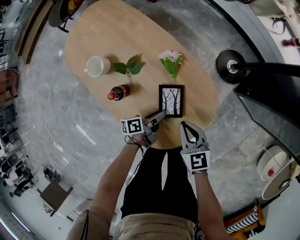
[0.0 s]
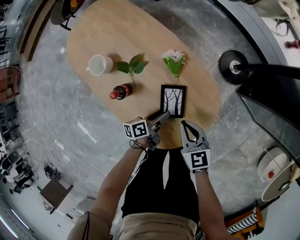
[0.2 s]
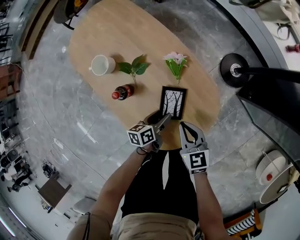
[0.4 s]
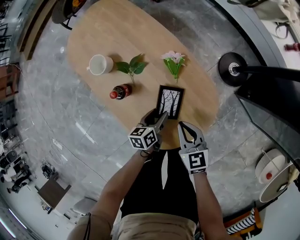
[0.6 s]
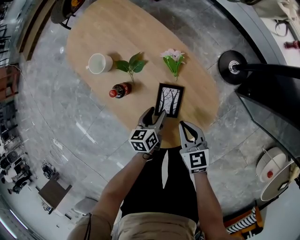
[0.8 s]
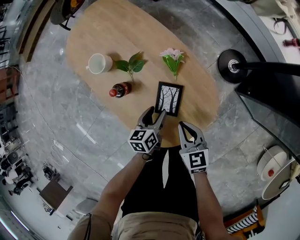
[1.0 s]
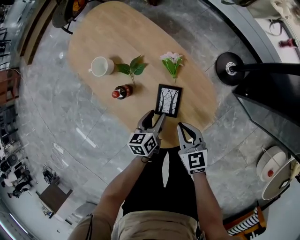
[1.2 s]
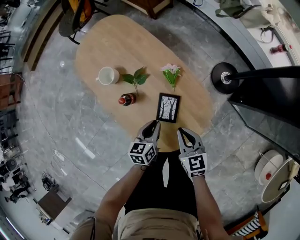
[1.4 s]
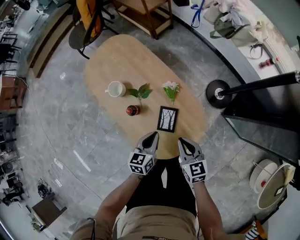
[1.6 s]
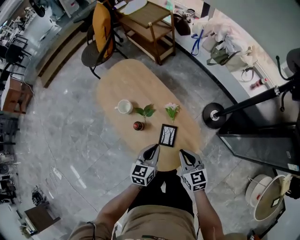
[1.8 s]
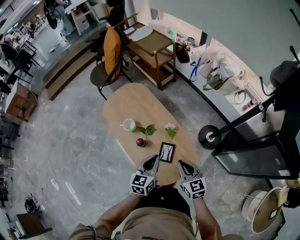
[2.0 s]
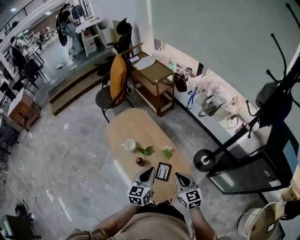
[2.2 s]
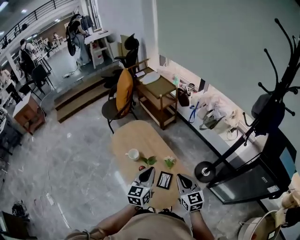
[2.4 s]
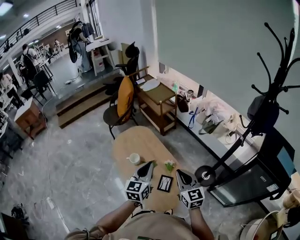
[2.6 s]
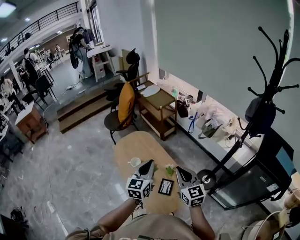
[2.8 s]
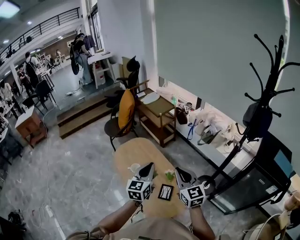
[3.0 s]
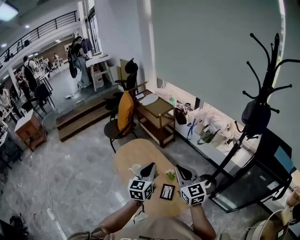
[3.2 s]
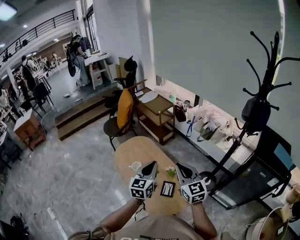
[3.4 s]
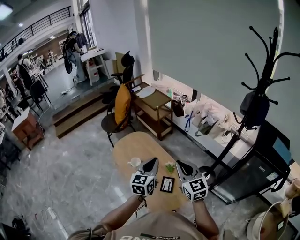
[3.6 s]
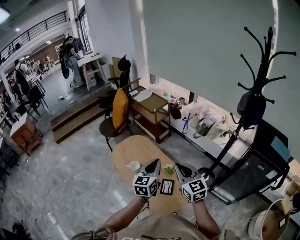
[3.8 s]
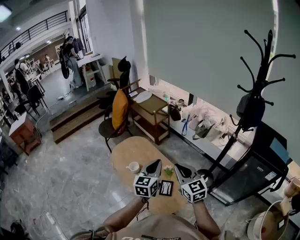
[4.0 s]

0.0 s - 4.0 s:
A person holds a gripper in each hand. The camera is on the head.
0.0 s - 1.4 s: The left gripper is displaced upward by about 10 cm, swivels about 50 degrees, and opens, then closes once more.
1.4 s - 2.6 s: Both grippers travel together upward, approximately 35 cm. The left gripper swivels approximately 40 degrees; the right gripper changes its angle by roughly 30 degrees.
2.6 s - 4.0 s: The right gripper heads upward, covering some 5 cm.

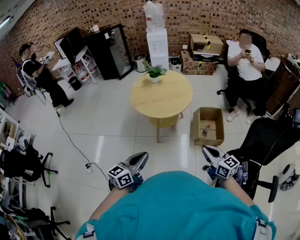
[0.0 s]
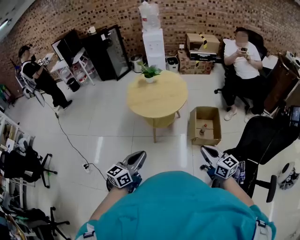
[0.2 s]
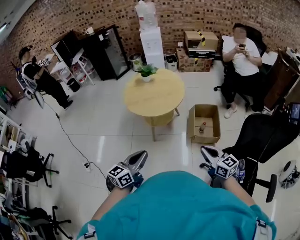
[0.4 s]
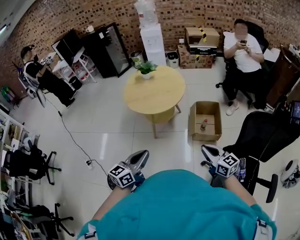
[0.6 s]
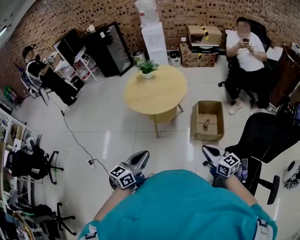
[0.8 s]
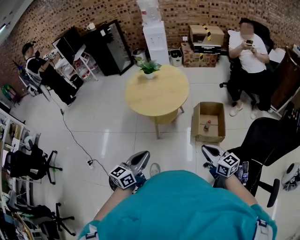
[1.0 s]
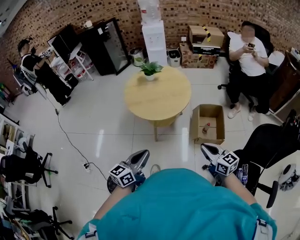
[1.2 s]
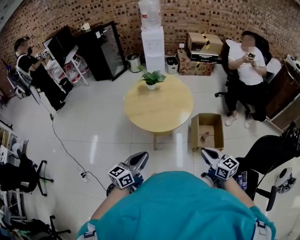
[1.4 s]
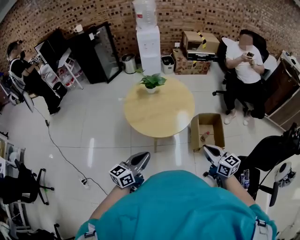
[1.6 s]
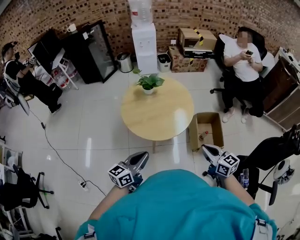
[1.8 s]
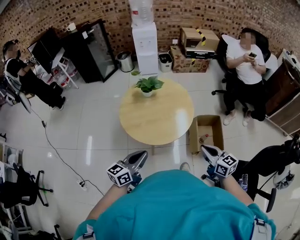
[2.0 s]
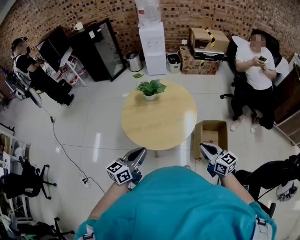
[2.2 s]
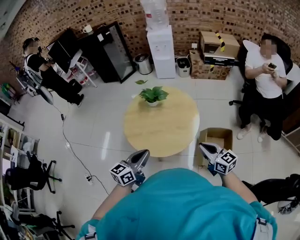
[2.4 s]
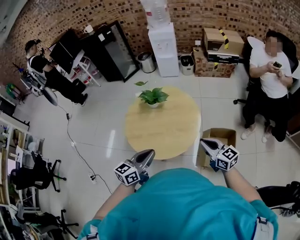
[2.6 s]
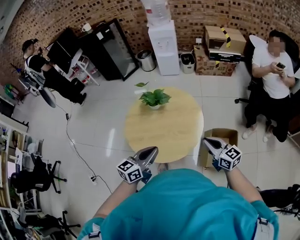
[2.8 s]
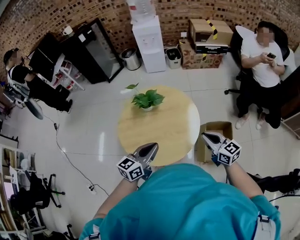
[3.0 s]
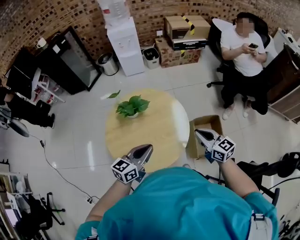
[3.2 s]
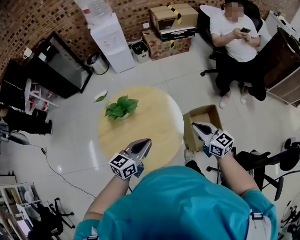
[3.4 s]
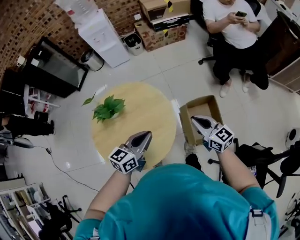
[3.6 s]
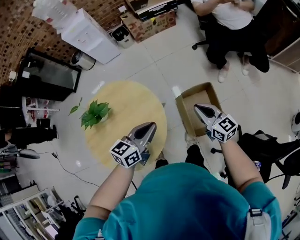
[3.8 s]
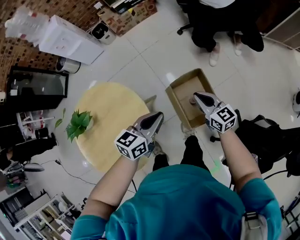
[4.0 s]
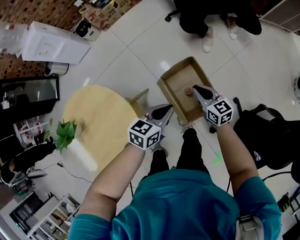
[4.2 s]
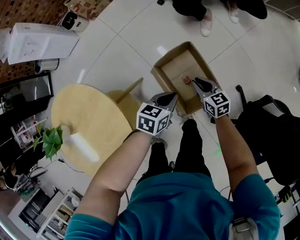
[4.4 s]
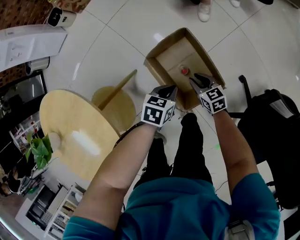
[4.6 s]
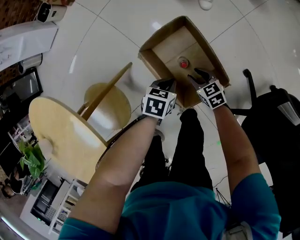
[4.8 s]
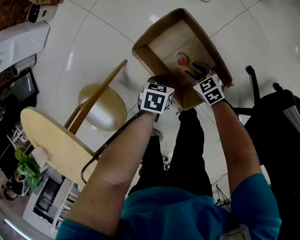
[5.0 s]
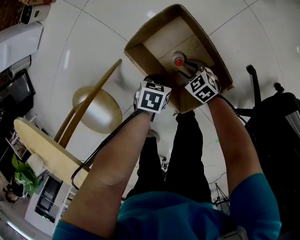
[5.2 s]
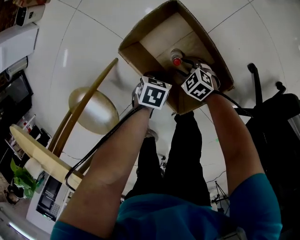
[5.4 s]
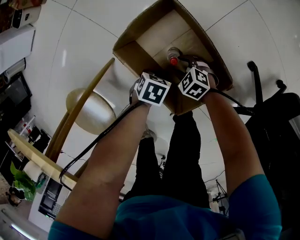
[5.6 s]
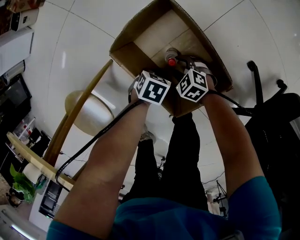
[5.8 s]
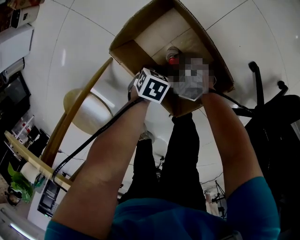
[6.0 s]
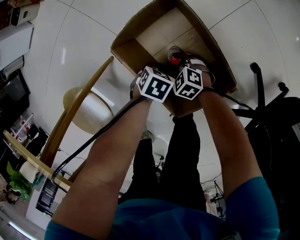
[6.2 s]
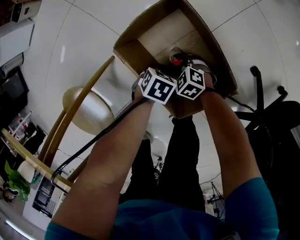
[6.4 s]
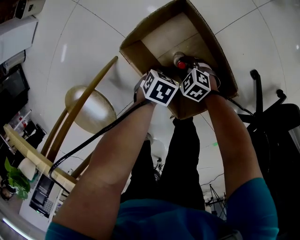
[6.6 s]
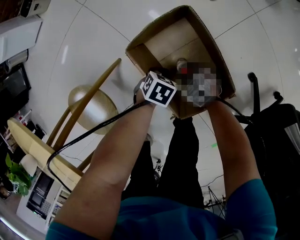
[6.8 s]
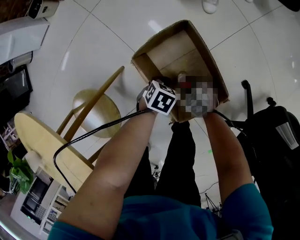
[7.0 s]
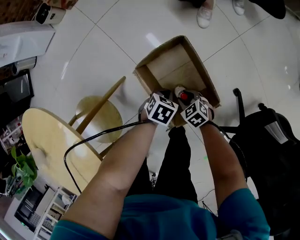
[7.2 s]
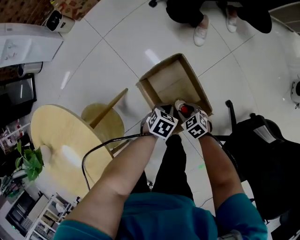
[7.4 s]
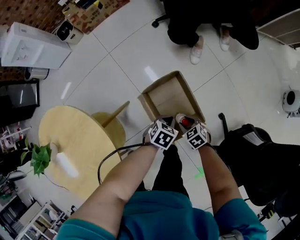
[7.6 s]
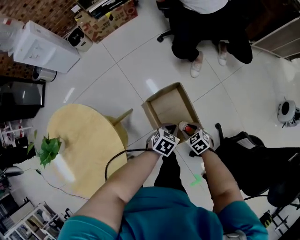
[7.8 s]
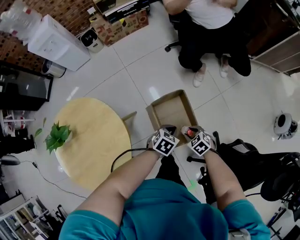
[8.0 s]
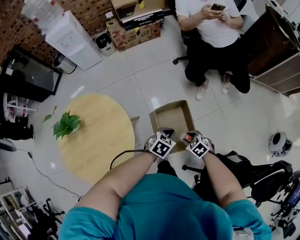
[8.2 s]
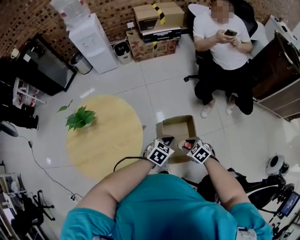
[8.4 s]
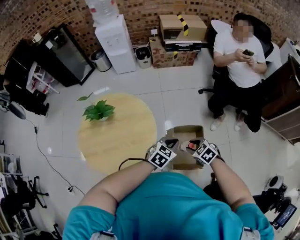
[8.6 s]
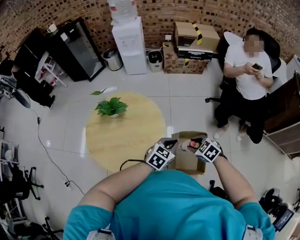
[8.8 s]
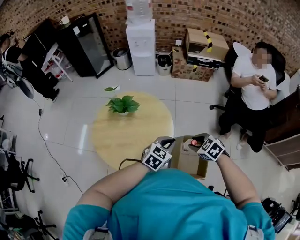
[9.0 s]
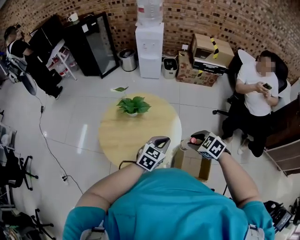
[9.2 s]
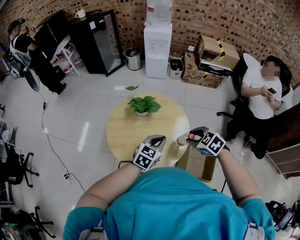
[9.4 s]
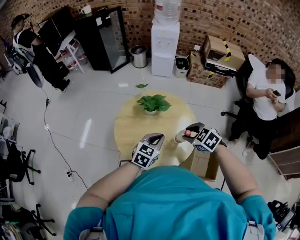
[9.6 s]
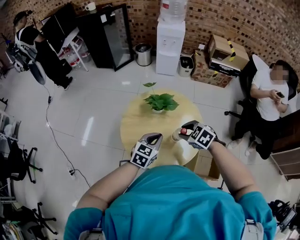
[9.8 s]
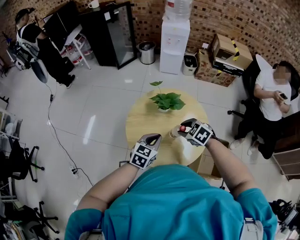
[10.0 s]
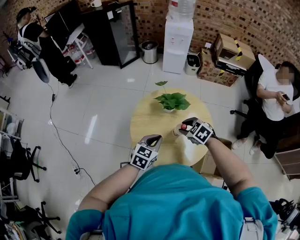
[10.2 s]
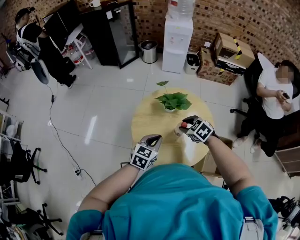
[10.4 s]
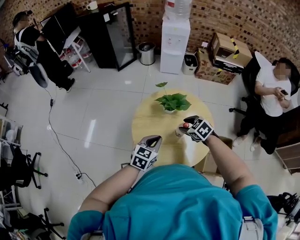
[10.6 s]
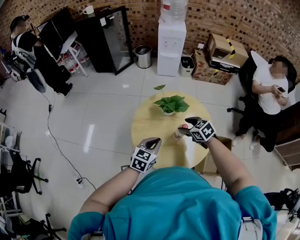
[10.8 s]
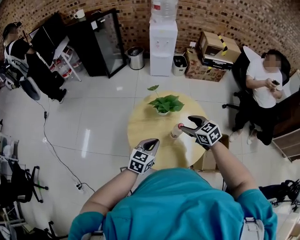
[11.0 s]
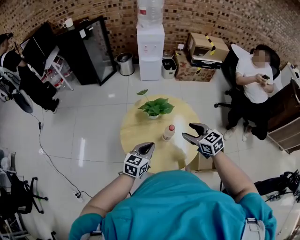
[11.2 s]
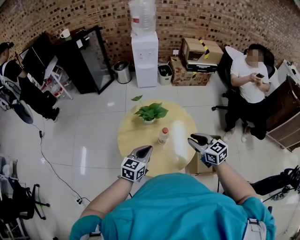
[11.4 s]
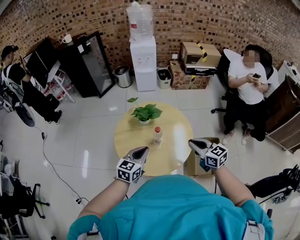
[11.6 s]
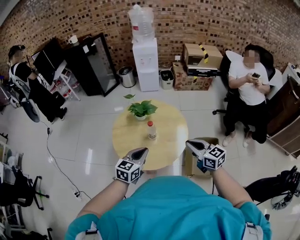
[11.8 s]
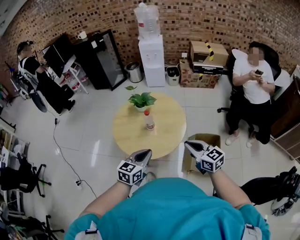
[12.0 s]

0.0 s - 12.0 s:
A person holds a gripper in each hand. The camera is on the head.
0.0 s - 1.6 s: The grippers both shift forward and to the left by about 30 cm.
1.6 s - 3.0 s: Both grippers are carried forward, approximately 40 cm.
3.0 s - 4.4 s: The two grippers go roughly 60 cm downward. The left gripper angles its fingers downward, by approximately 40 degrees. The right gripper rotates roughly 50 degrees.
4.4 s - 6.0 s: The two grippers go roughly 50 cm downward. The left gripper points its fingers about 30 degrees further downward. The right gripper turns by some 40 degrees, and opens up.
6.0 s - 7.6 s: The grippers both shift upward by about 40 cm. The left gripper rotates approximately 20 degrees.
7.6 s - 9.0 s: Both grippers travel together upward, some 70 cm. The left gripper swivels roughly 50 degrees. Meanwhile the right gripper rolls counterclockwise, seen from behind, by about 50 degrees.
9.0 s - 10.4 s: The left gripper shifts some 35 cm to the left. The right gripper goes some 40 cm to the left and forward.
10.4 s - 12.0 s: The grippers both shift backward and to the right by about 40 cm. The right gripper points its fingers about 40 degrees further upward, and closes its fingers.

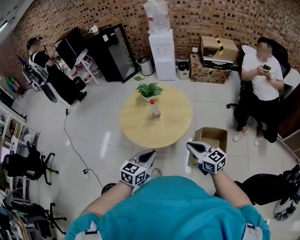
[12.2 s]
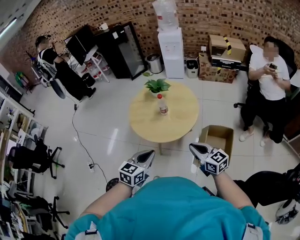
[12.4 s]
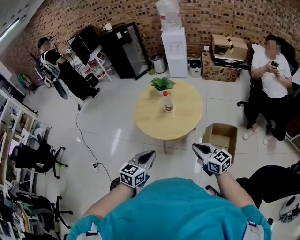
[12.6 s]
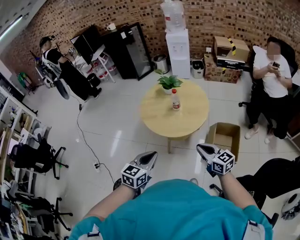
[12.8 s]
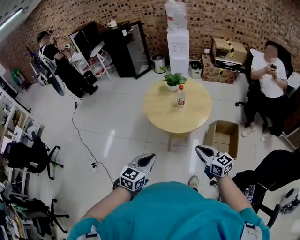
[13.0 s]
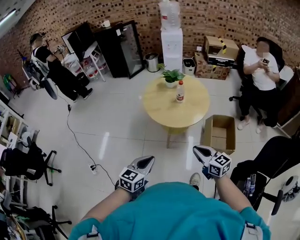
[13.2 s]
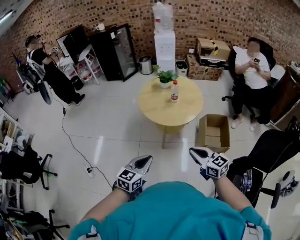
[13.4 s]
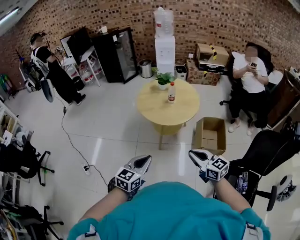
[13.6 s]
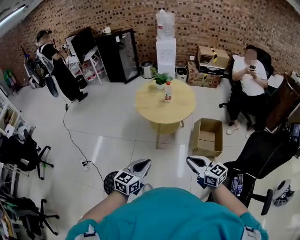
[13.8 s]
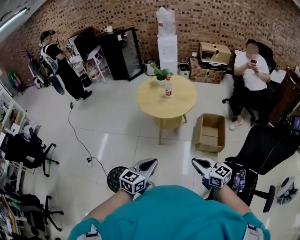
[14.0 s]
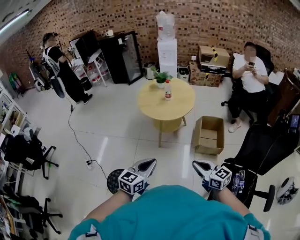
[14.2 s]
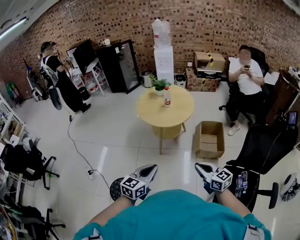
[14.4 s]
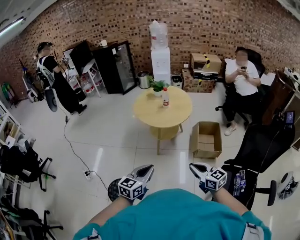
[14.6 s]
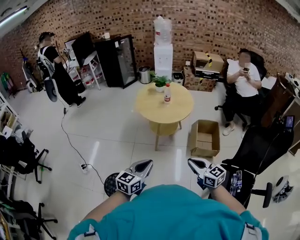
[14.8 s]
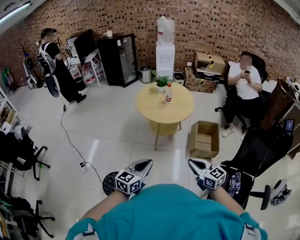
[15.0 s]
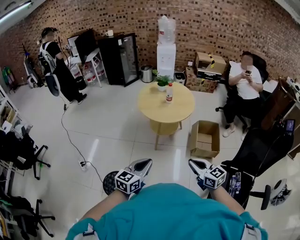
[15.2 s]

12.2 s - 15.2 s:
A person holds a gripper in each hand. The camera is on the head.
12.2 s - 13.8 s: The two grippers travel together, backward and to the left, some 50 cm.
13.8 s - 15.2 s: Both grippers move backward, some 5 cm.

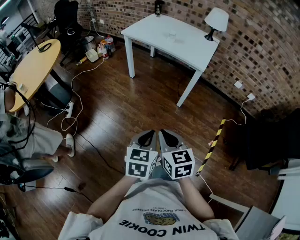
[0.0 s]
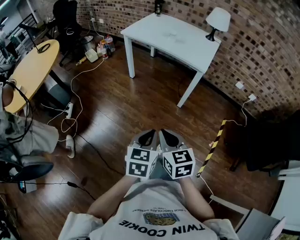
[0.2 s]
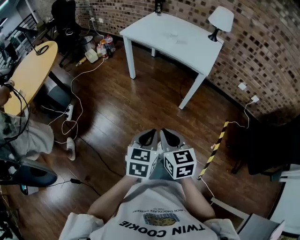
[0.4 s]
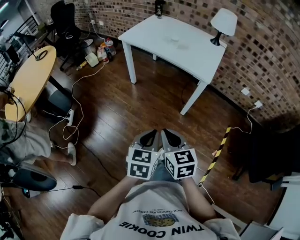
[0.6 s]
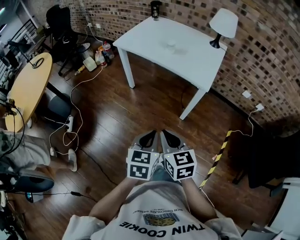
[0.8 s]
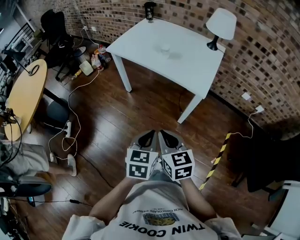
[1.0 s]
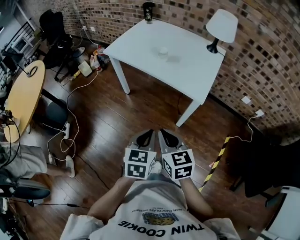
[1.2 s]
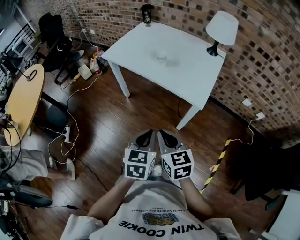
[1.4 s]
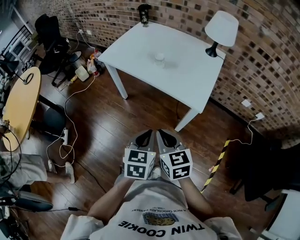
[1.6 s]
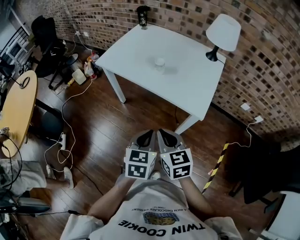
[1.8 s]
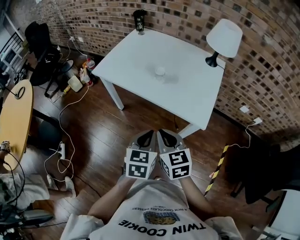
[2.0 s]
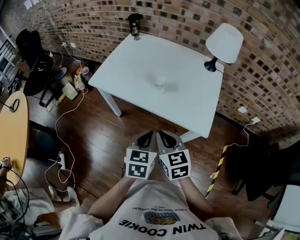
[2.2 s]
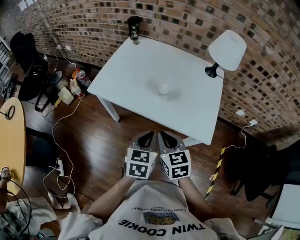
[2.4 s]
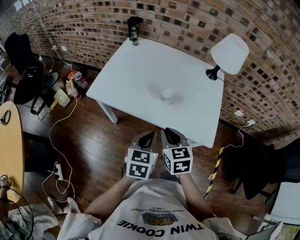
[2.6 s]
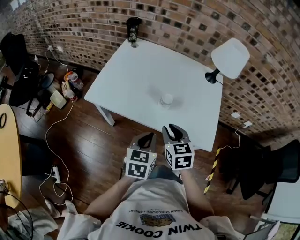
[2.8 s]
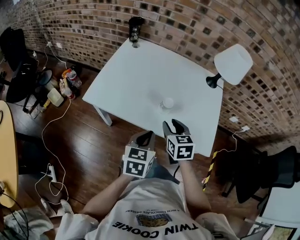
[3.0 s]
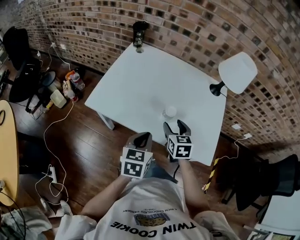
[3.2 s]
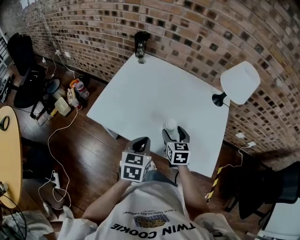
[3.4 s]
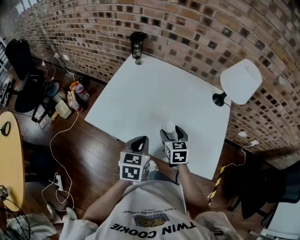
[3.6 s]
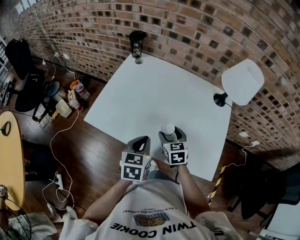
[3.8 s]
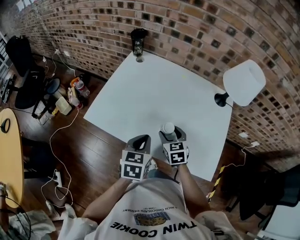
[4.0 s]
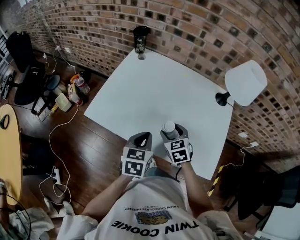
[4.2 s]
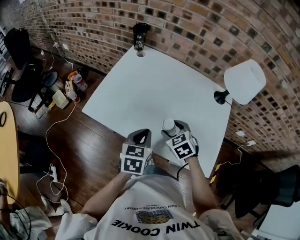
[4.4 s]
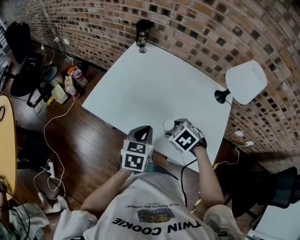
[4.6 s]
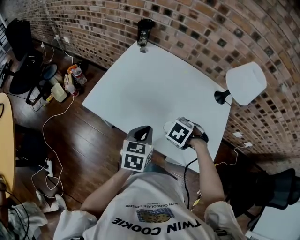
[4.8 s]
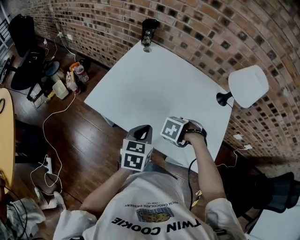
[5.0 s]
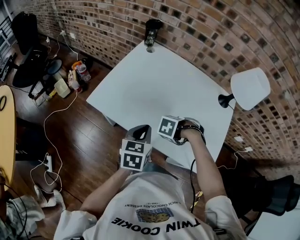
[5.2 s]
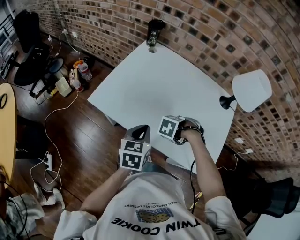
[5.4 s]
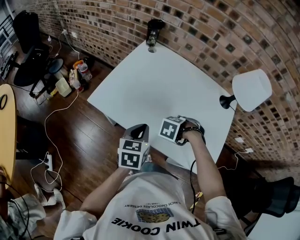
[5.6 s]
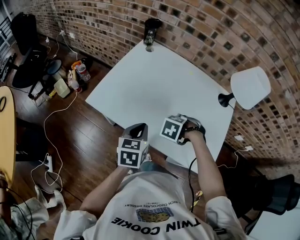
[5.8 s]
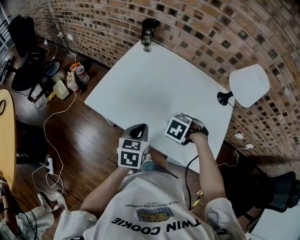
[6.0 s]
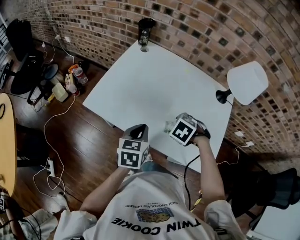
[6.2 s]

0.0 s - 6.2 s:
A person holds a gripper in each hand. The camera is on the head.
0.0 s - 1.6 s: Both grippers travel together forward, some 40 cm.
1.6 s - 3.2 s: The right gripper heads forward, covering approximately 40 cm, swivels about 30 degrees, and opens. Meanwhile the left gripper shifts roughly 35 cm forward and to the left.
3.2 s - 4.6 s: The left gripper goes about 5 cm forward, while the right gripper angles its fingers downward, by about 30 degrees.
